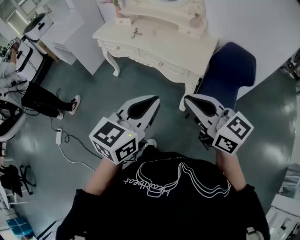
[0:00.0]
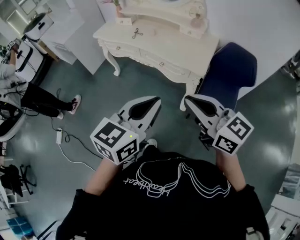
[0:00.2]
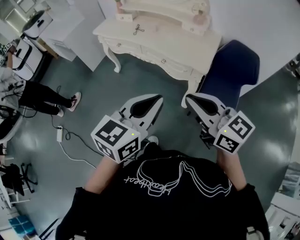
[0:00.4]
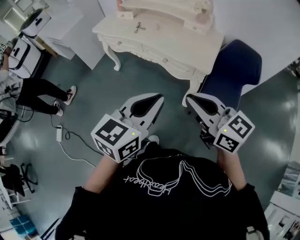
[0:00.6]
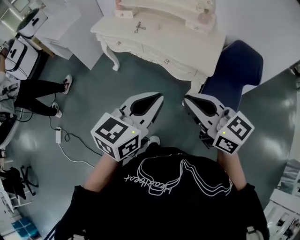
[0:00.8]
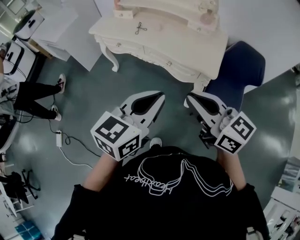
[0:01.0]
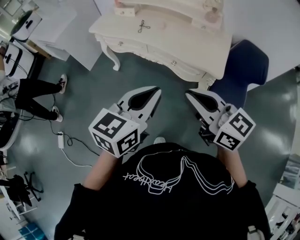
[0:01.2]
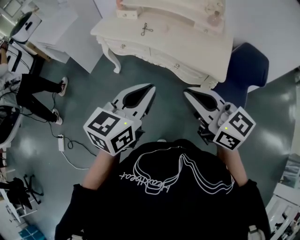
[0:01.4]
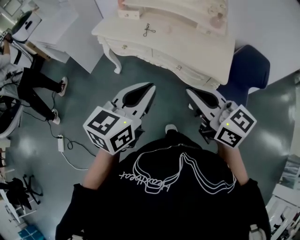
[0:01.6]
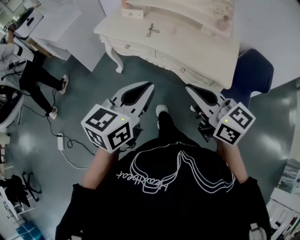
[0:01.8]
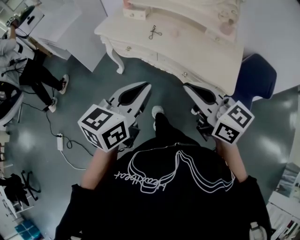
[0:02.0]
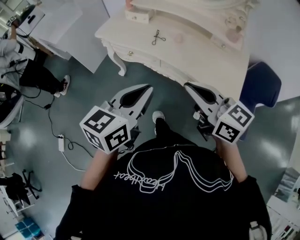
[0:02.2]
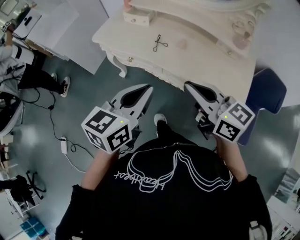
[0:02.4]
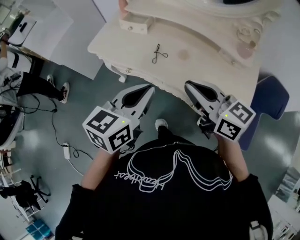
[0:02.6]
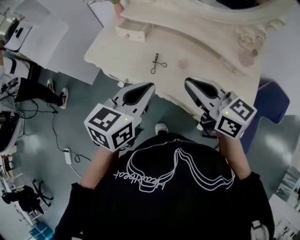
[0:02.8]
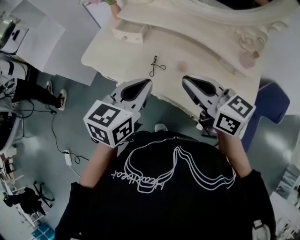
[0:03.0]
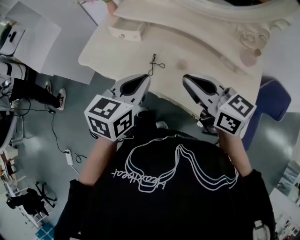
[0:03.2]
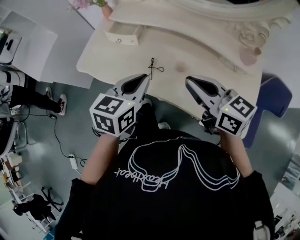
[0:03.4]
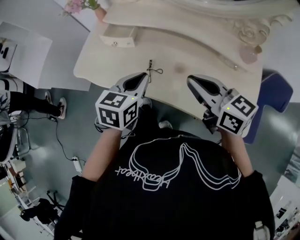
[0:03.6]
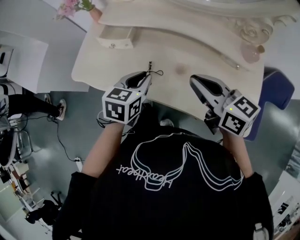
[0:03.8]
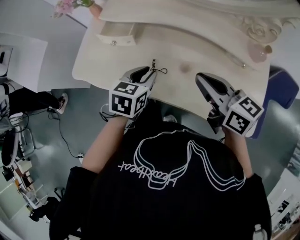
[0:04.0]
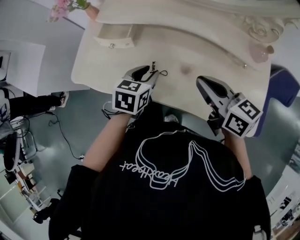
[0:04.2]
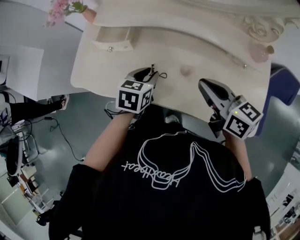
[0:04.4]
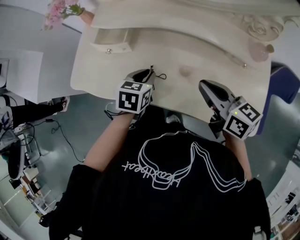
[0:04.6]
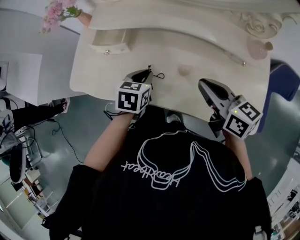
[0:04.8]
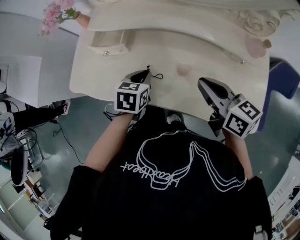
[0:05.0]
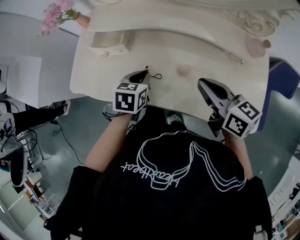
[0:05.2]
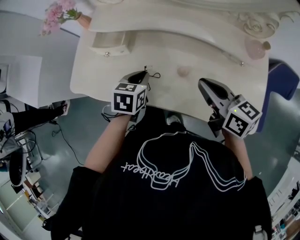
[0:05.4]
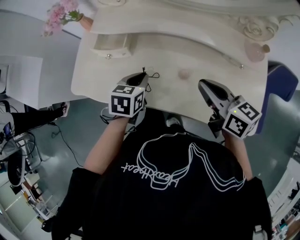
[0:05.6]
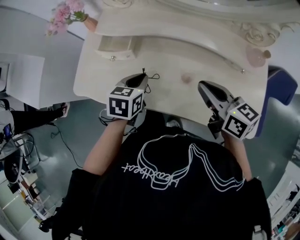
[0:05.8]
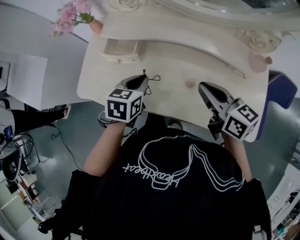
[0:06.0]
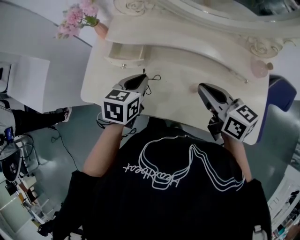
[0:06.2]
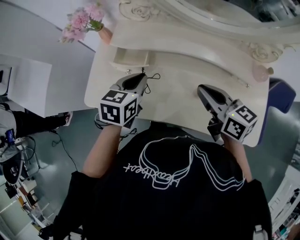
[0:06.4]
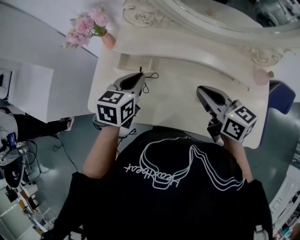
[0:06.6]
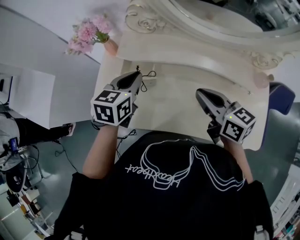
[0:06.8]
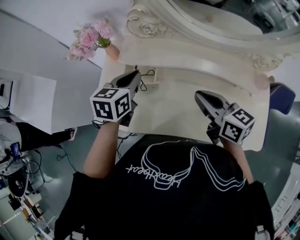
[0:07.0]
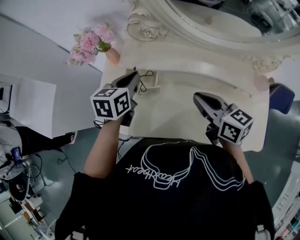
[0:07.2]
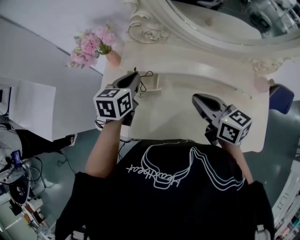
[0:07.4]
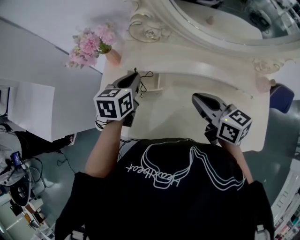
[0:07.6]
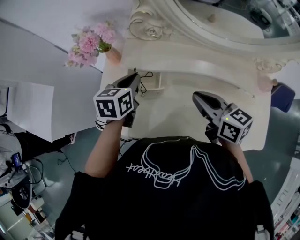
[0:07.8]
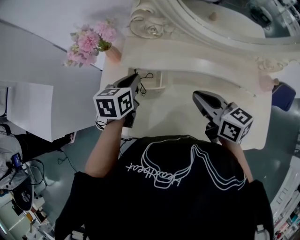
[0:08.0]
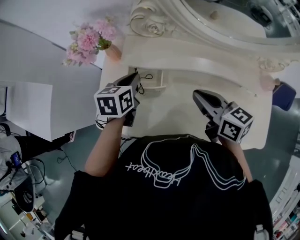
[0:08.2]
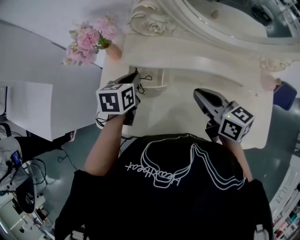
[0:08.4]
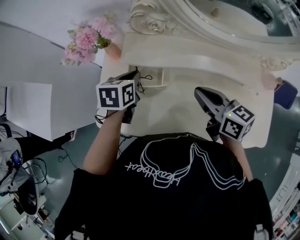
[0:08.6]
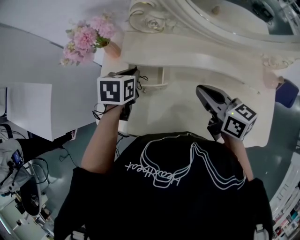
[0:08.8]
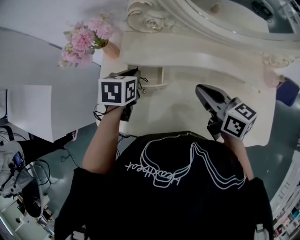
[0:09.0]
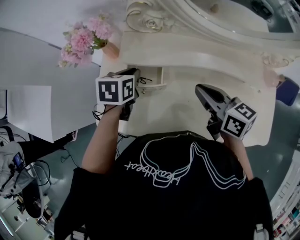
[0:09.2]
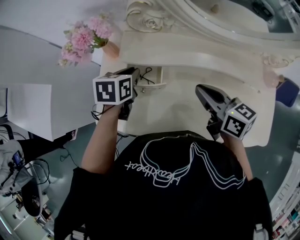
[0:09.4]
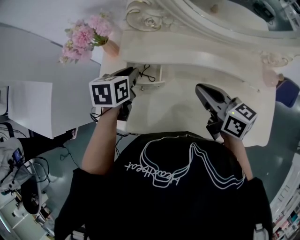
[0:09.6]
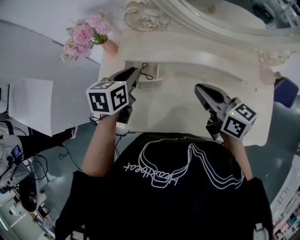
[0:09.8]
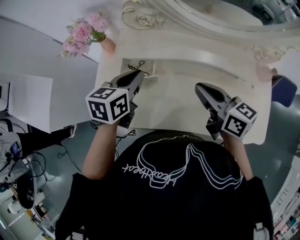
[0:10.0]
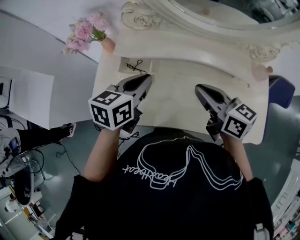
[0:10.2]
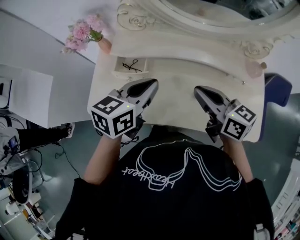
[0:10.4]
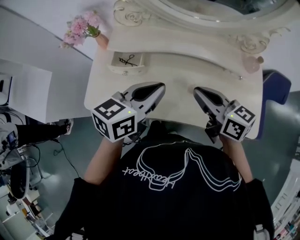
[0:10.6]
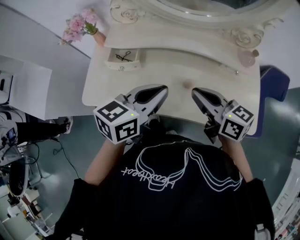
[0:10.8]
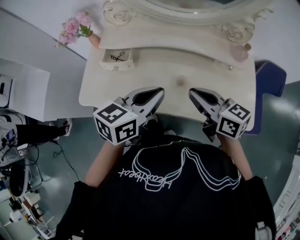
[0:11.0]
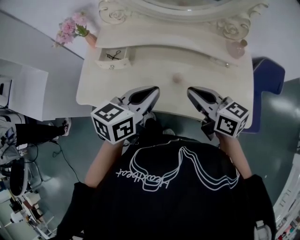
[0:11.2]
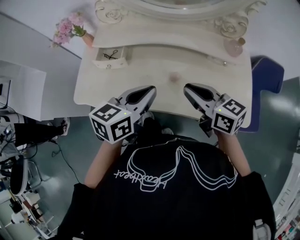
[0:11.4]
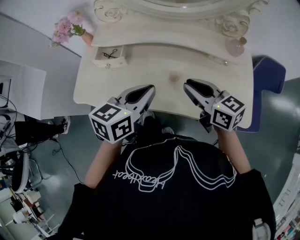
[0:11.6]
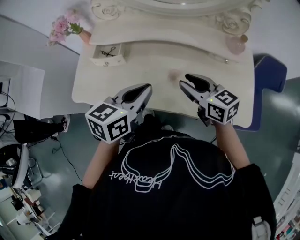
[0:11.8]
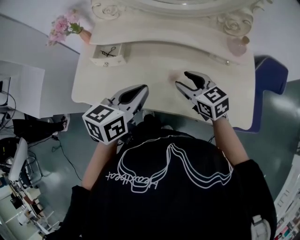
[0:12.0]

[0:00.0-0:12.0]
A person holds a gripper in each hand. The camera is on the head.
0.0 to 1.6 s: Both grippers travel together forward and to the left, approximately 20 cm.
1.6 to 3.0 s: The two grippers go roughly 40 cm forward.
3.0 to 4.4 s: The left gripper goes some 25 cm downward and forward, rotates roughly 30 degrees, and opens. Meanwhile the right gripper shifts approximately 15 cm downward, forward and to the right, and swivels about 20 degrees.
4.4 to 6.0 s: The left gripper ends up roughly 5 cm from where it was, and closes.
6.0 to 7.6 s: The left gripper travels forward and to the left by approximately 20 cm. The right gripper goes approximately 15 cm to the left and forward.
7.6 to 9.0 s: The left gripper heads downward, covering approximately 5 cm.
9.0 to 10.4 s: The right gripper travels backward, to the right and upward by about 10 cm. Meanwhile the left gripper shifts some 25 cm backward, upward and to the right, and changes its angle by about 30 degrees.
10.4 to 12.0 s: The right gripper heads downward and to the right, covering some 15 cm, swivels about 30 degrees, and opens its fingers. Meanwhile the left gripper travels backward and to the right by some 10 cm.

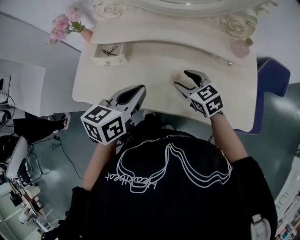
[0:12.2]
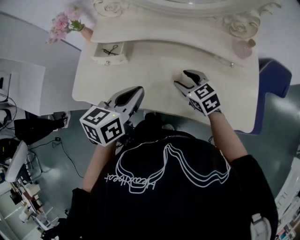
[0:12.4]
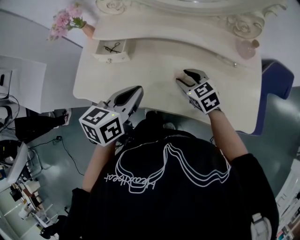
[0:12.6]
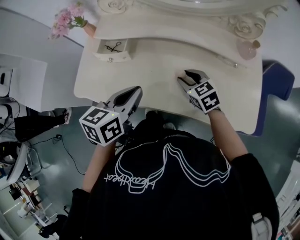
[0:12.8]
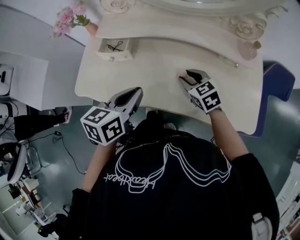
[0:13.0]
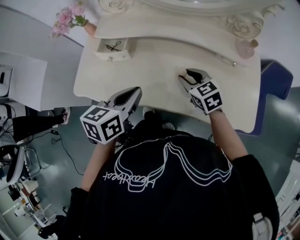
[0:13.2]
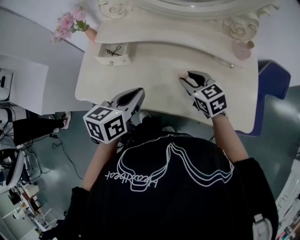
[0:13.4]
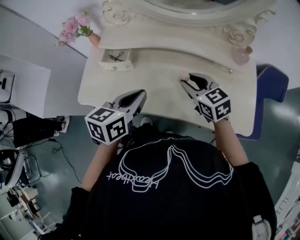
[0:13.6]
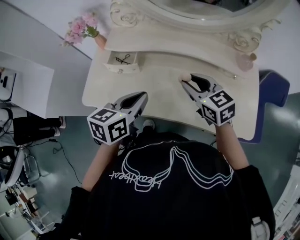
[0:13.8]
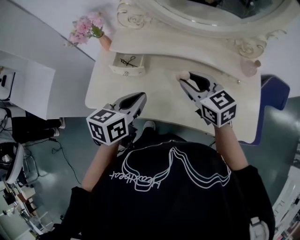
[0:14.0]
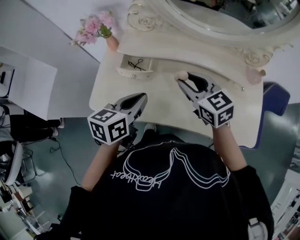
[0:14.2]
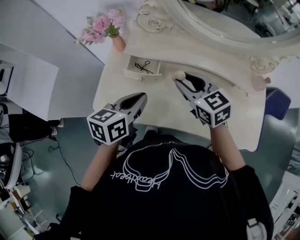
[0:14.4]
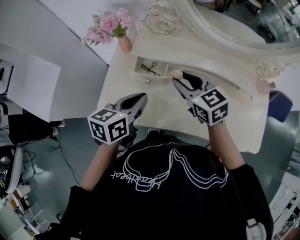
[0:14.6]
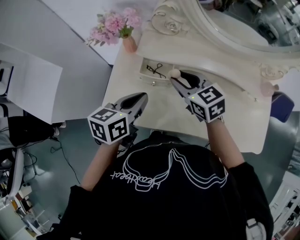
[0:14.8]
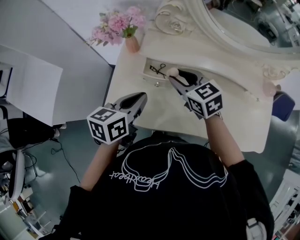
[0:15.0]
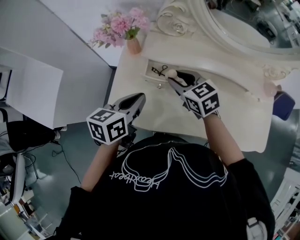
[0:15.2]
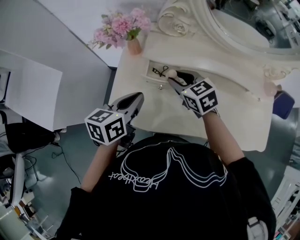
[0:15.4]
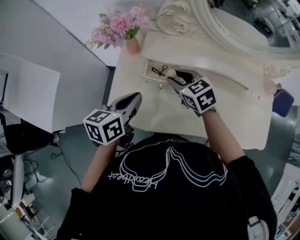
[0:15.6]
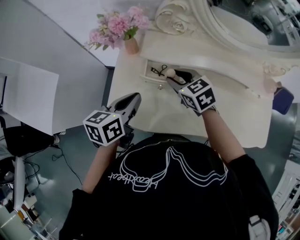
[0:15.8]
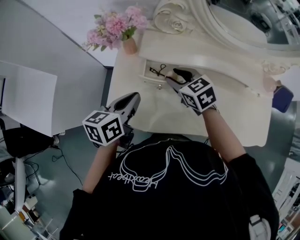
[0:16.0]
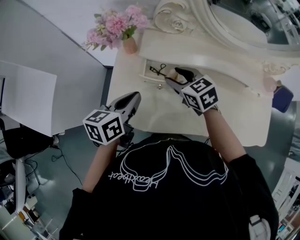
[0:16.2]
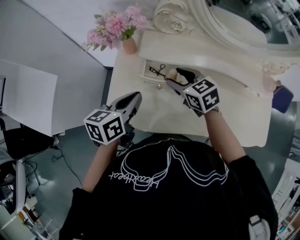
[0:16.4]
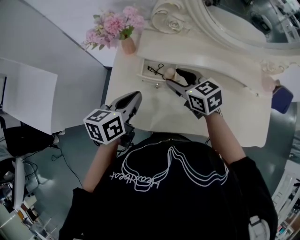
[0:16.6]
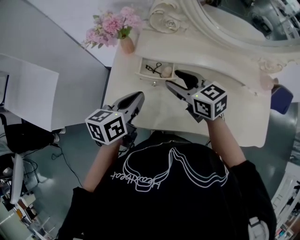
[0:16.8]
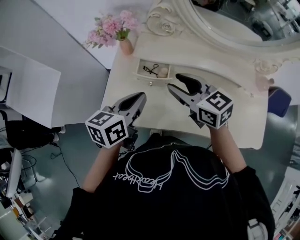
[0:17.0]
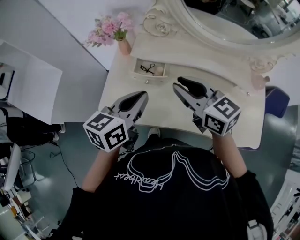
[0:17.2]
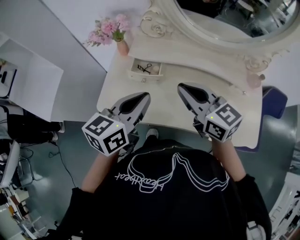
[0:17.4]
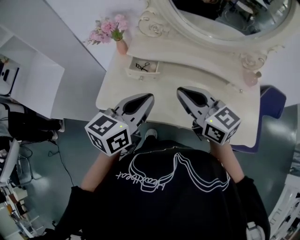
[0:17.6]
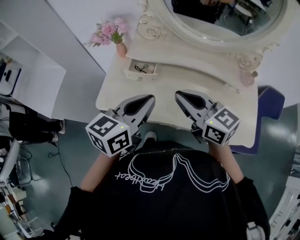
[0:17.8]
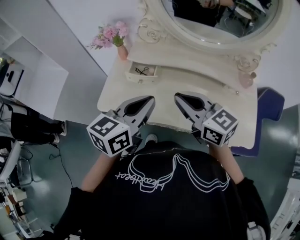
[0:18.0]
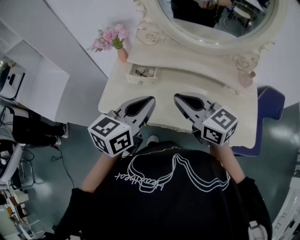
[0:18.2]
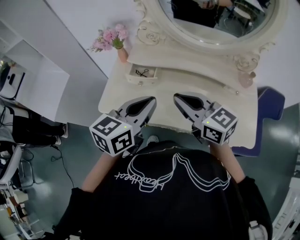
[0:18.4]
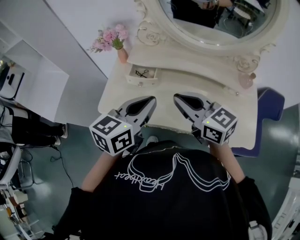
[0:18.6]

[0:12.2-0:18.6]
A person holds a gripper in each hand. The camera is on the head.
12.2 to 13.8 s: The right gripper heads upward, covering about 10 cm, and closes its fingers.
13.8 to 15.4 s: Both grippers travel together to the left and forward, roughly 25 cm.
15.4 to 17.0 s: The right gripper heads upward and backward, covering roughly 10 cm. The left gripper moves approximately 5 cm.
17.0 to 18.6 s: The left gripper is displaced backward, to the right and upward by about 15 cm. Meanwhile the right gripper is displaced backward, upward and to the right by roughly 15 cm, and closes.

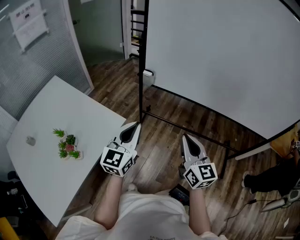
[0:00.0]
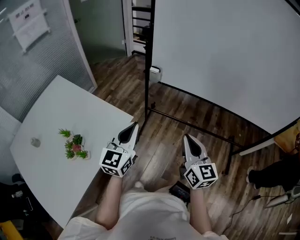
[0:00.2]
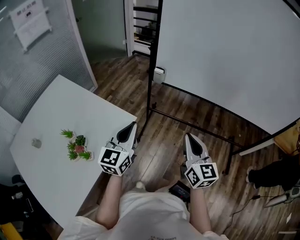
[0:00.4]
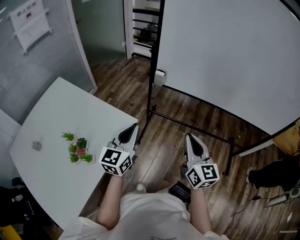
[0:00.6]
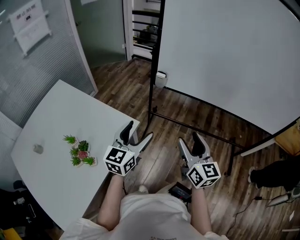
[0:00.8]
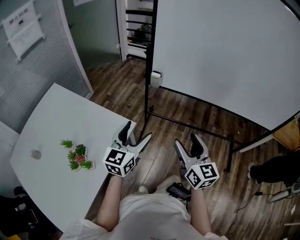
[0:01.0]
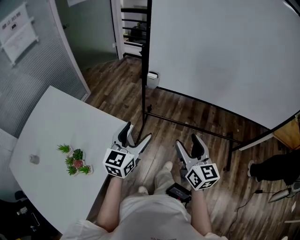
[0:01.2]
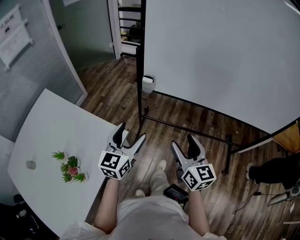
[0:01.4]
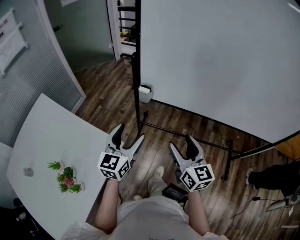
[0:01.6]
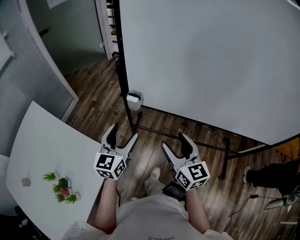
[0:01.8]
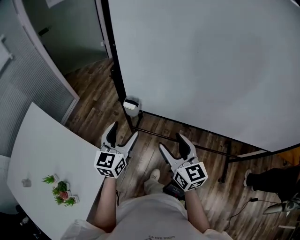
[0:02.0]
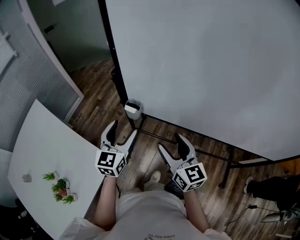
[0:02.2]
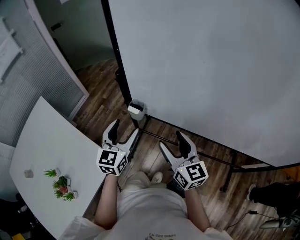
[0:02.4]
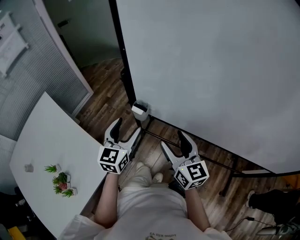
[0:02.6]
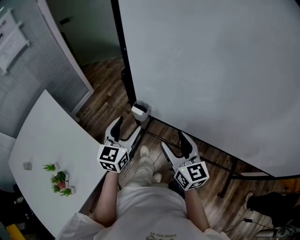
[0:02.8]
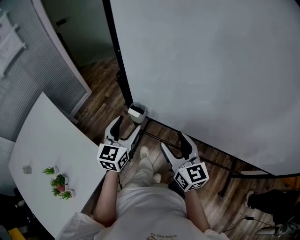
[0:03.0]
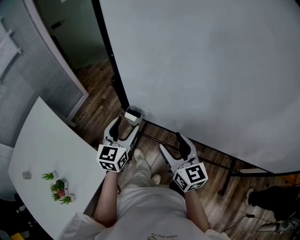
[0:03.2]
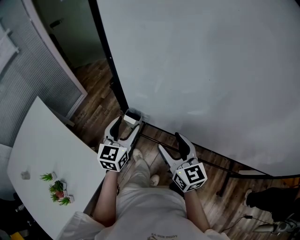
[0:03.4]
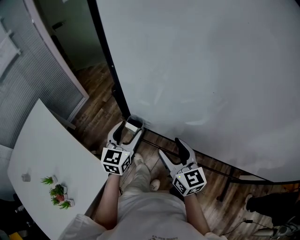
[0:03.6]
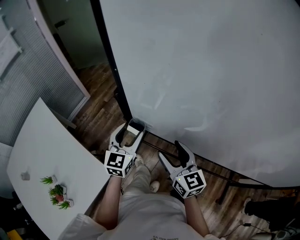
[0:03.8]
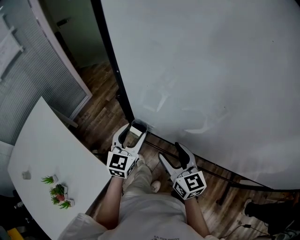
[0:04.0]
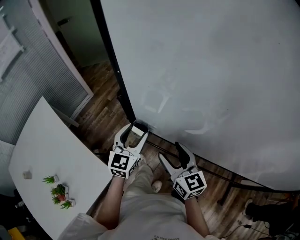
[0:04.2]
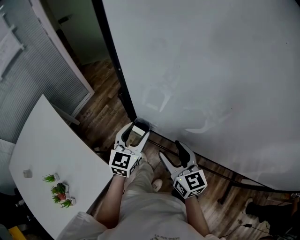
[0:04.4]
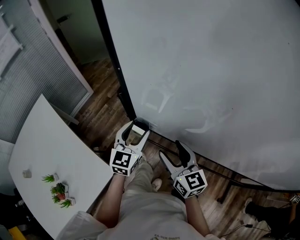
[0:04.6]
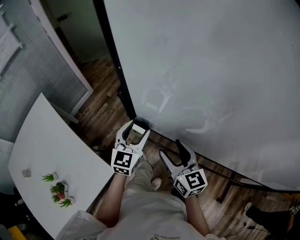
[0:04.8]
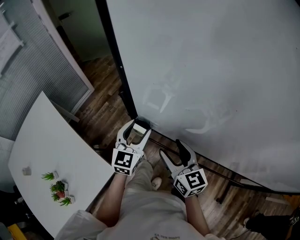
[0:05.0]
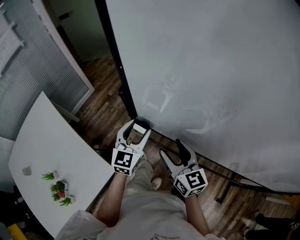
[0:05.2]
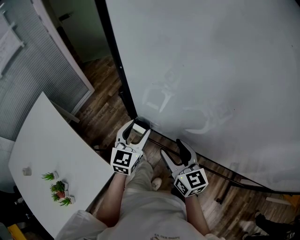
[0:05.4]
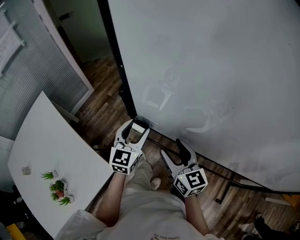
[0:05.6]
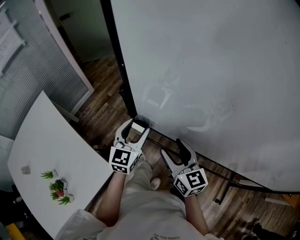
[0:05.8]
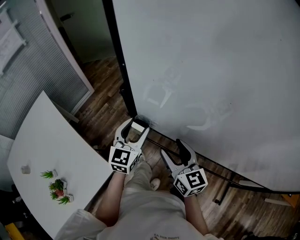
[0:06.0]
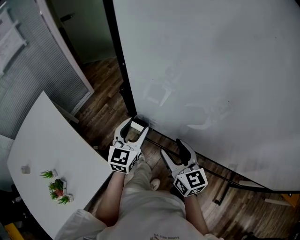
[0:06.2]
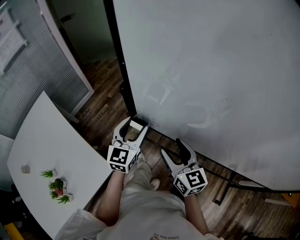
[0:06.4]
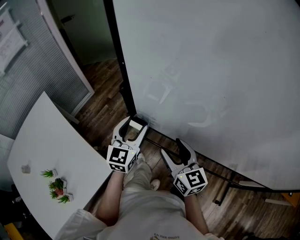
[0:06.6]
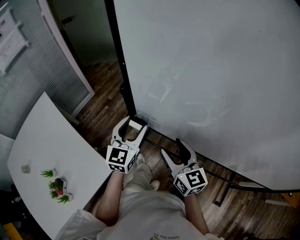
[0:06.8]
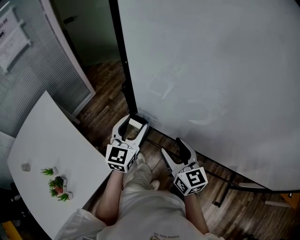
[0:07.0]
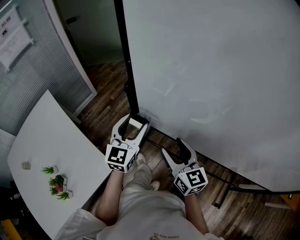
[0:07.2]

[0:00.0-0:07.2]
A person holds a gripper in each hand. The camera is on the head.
0.0 to 1.4 s: Both grippers travel together forward and to the left, some 10 cm. The right gripper opens up, while the left gripper opens up.
1.4 to 2.8 s: Both grippers move forward, roughly 25 cm.
2.8 to 4.4 s: The grippers both shift forward by approximately 5 cm.
4.4 to 5.8 s: Both grippers stay about where they are.
5.8 to 7.2 s: The left gripper is displaced upward by roughly 5 cm.
